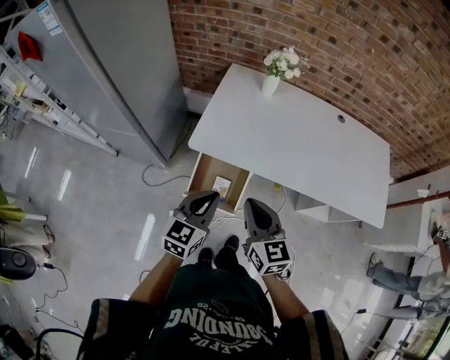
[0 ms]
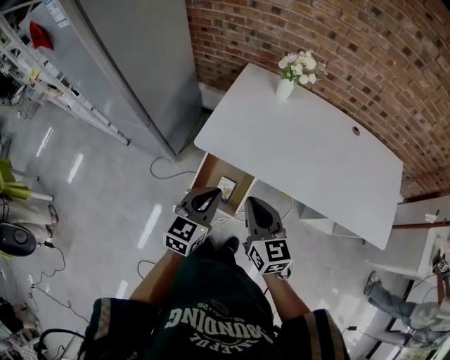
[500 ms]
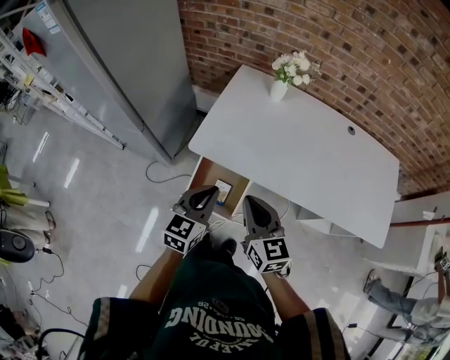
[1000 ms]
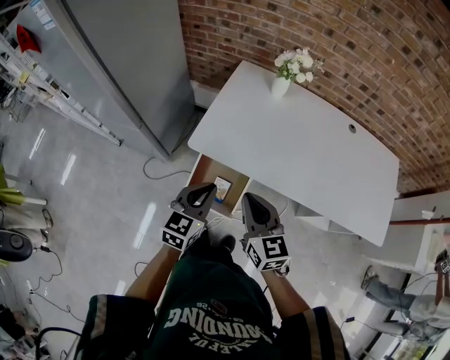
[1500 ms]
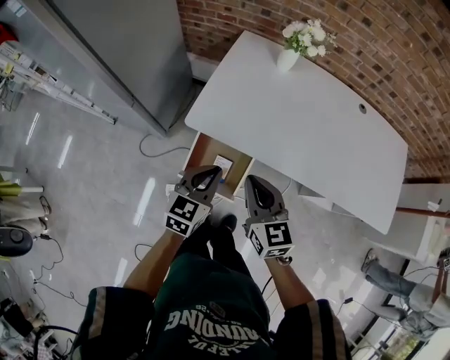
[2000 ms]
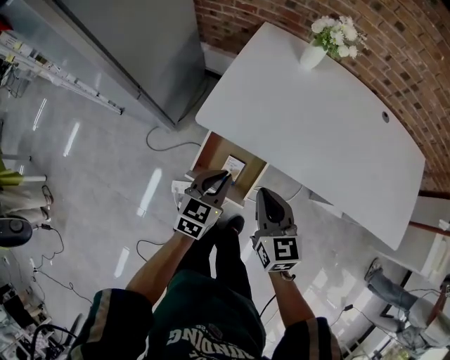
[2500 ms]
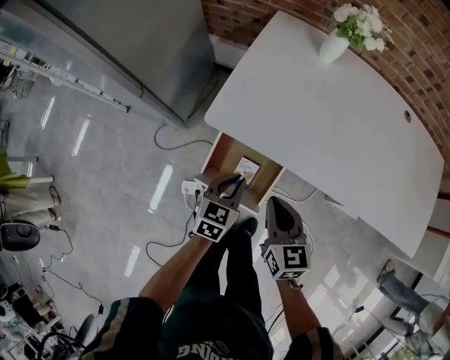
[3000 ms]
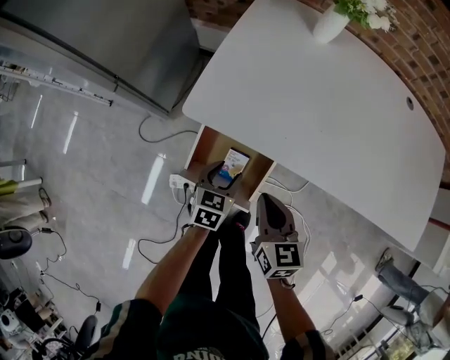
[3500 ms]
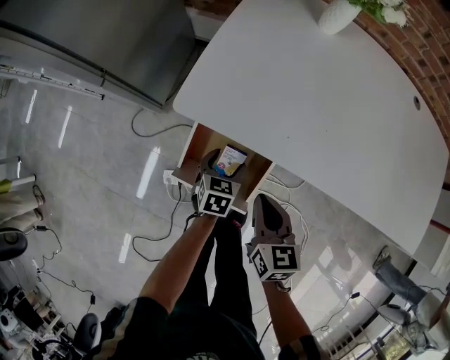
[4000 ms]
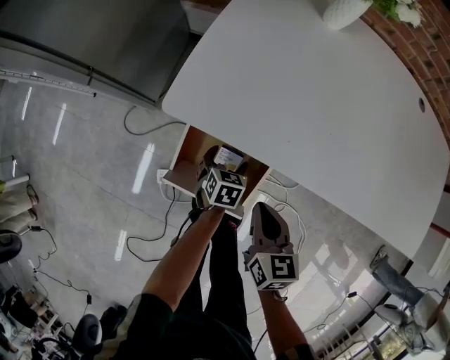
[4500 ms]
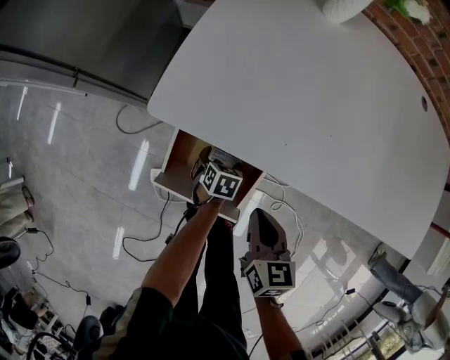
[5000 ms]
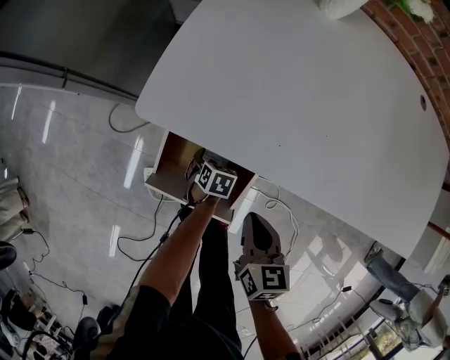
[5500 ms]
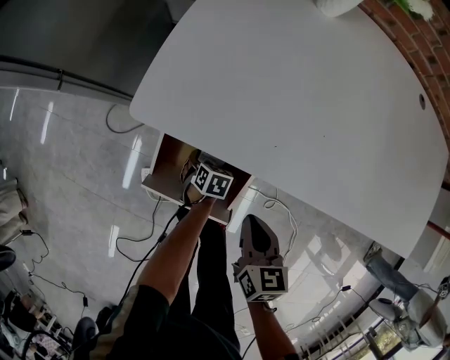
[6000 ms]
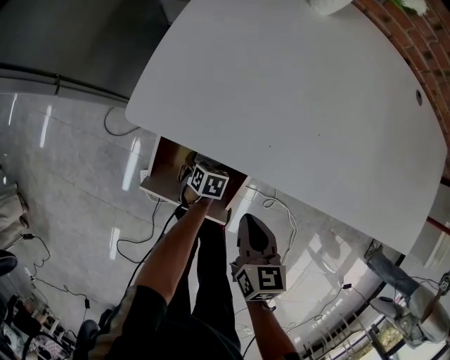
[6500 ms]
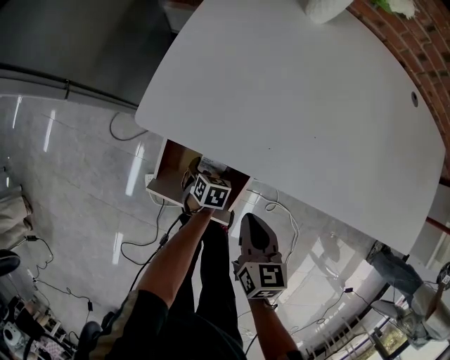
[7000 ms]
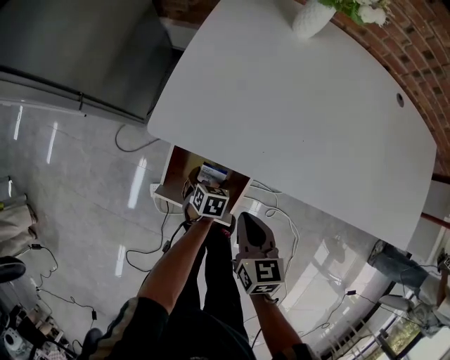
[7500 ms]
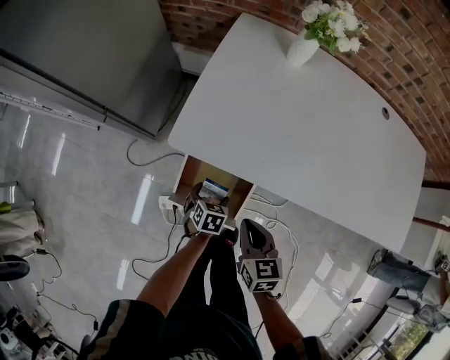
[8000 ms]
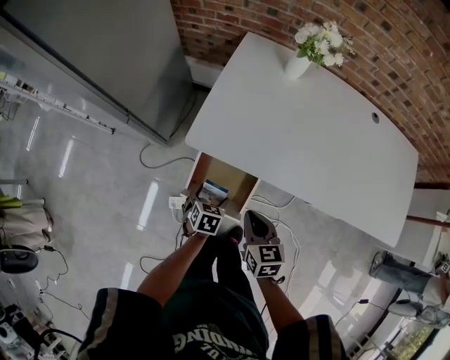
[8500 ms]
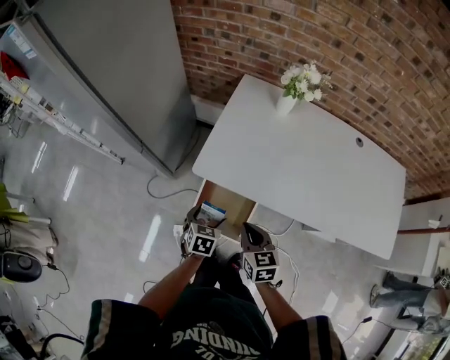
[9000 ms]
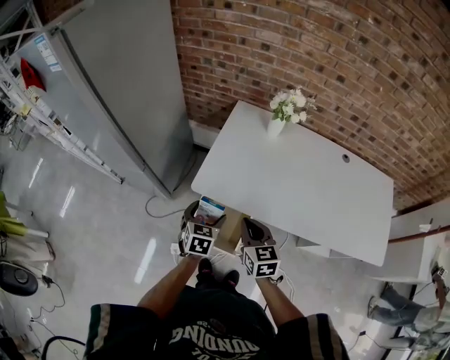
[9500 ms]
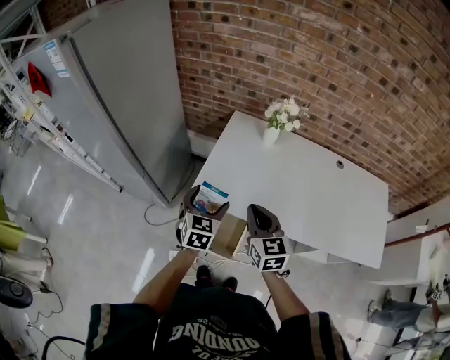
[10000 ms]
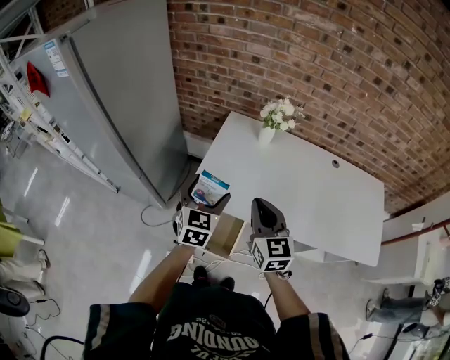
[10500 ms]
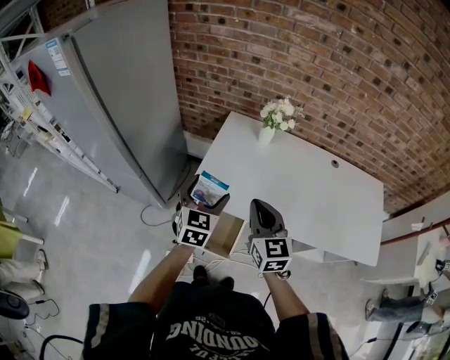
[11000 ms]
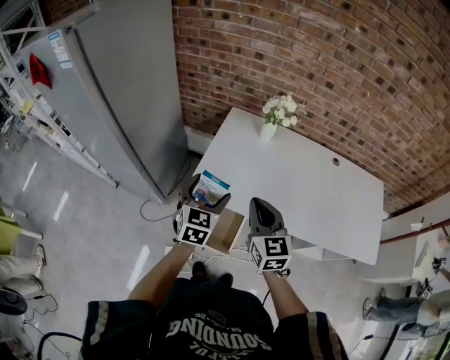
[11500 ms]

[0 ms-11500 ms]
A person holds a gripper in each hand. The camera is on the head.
0 ms to 2000 ms: The left gripper shifts about 10 cm downward and forward, while the right gripper heads forward and downward, covering roughly 10 cm.
2000 ms to 4000 ms: The two grippers go some 25 cm downward. The left gripper swivels some 30 degrees, and opens its fingers; the right gripper changes its angle by approximately 20 degrees.
4000 ms to 6000 ms: The right gripper goes some 5 cm downward, while the left gripper goes about 15 cm downward, and turns by approximately 20 degrees.
6000 ms to 7500 ms: The left gripper is displaced upward by approximately 10 cm.
7500 ms to 9500 ms: The left gripper goes approximately 35 cm upward, and changes its angle by about 30 degrees; the right gripper travels upward by approximately 20 cm.
9500 ms to 11500 ms: Both grippers travel together upward, about 15 cm.

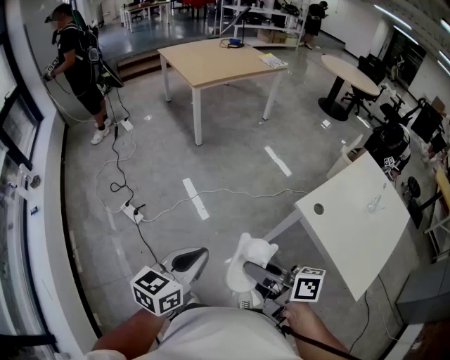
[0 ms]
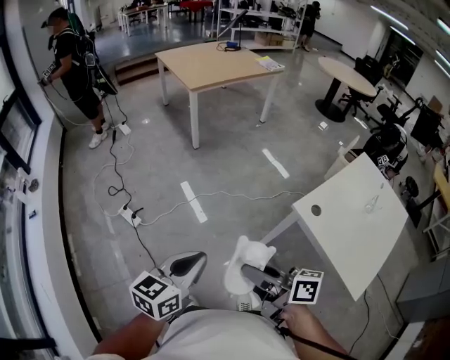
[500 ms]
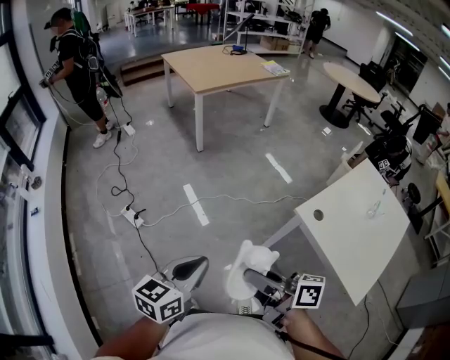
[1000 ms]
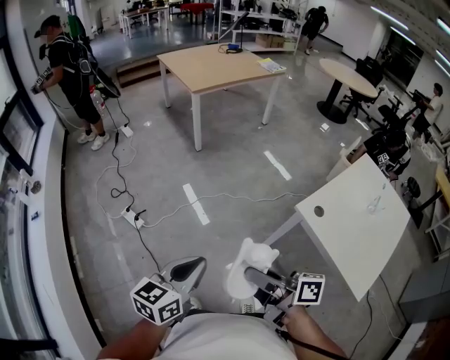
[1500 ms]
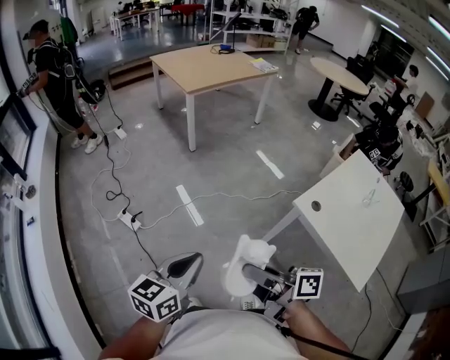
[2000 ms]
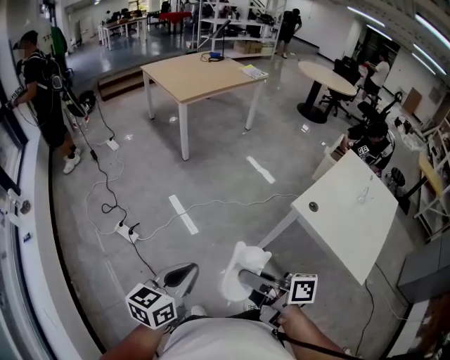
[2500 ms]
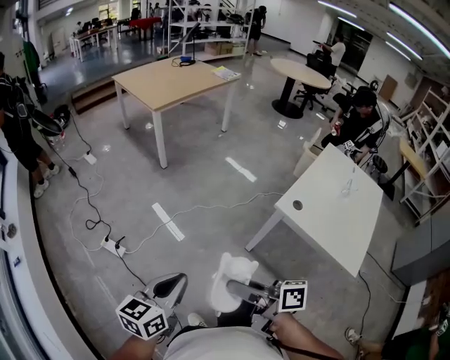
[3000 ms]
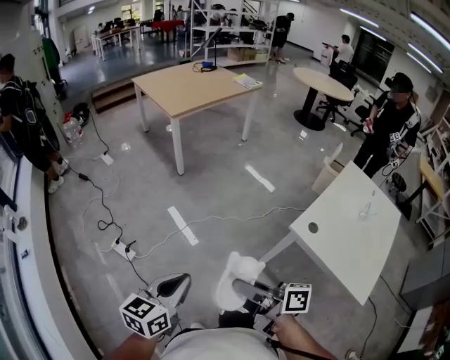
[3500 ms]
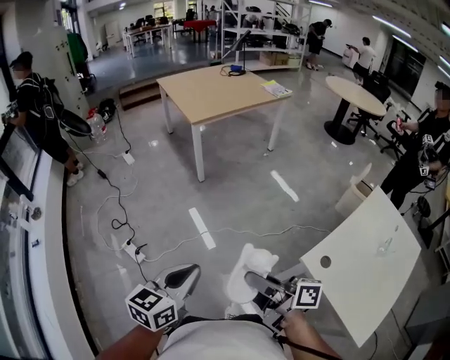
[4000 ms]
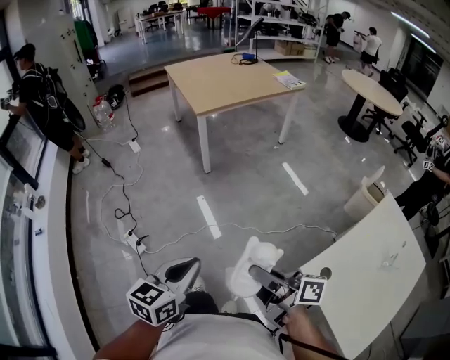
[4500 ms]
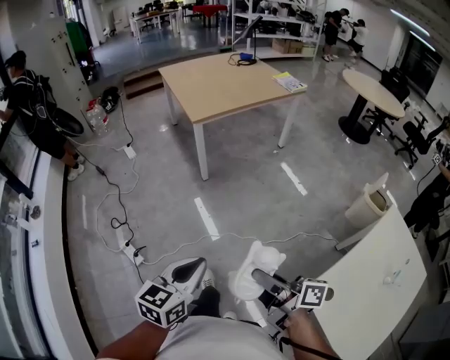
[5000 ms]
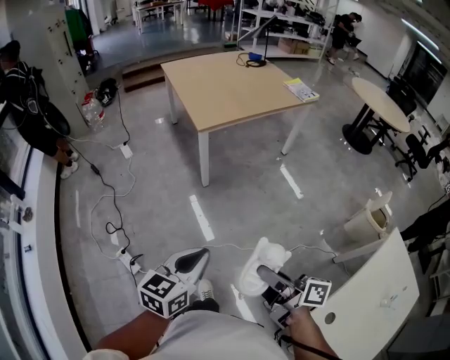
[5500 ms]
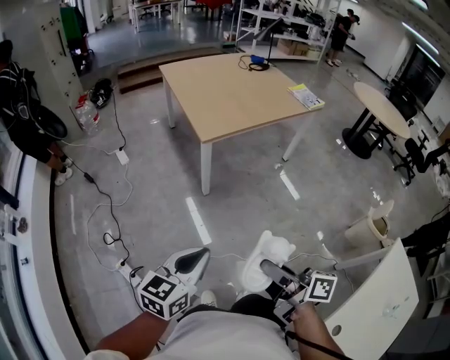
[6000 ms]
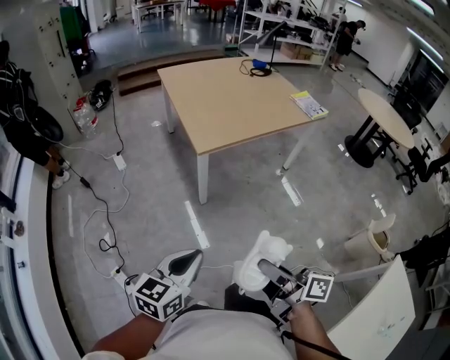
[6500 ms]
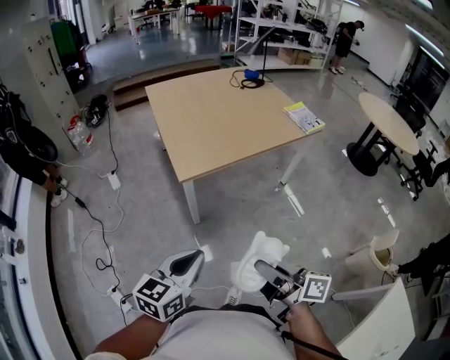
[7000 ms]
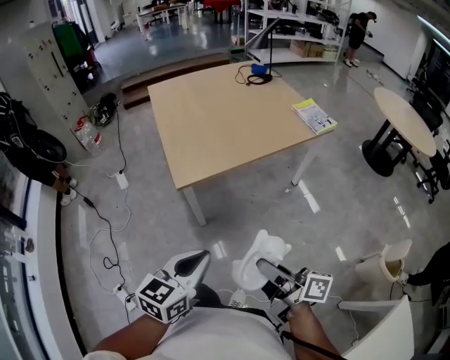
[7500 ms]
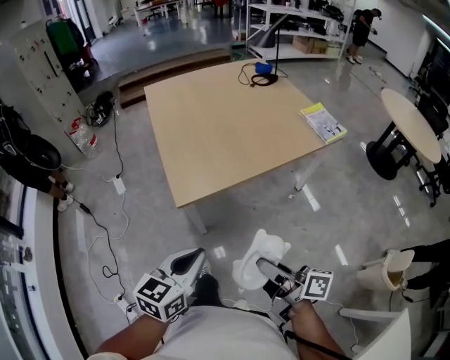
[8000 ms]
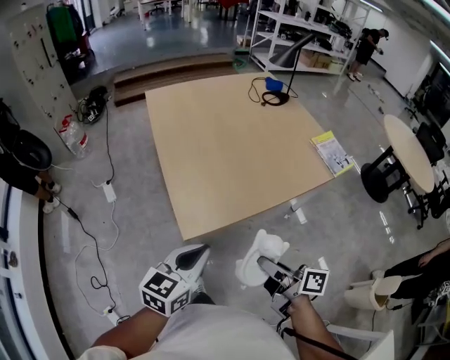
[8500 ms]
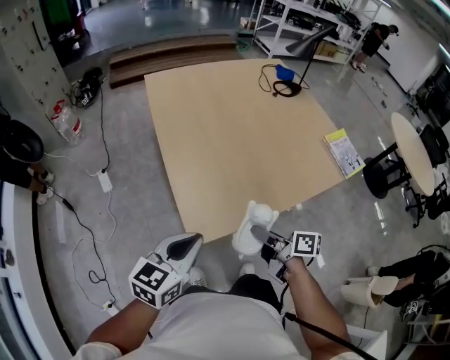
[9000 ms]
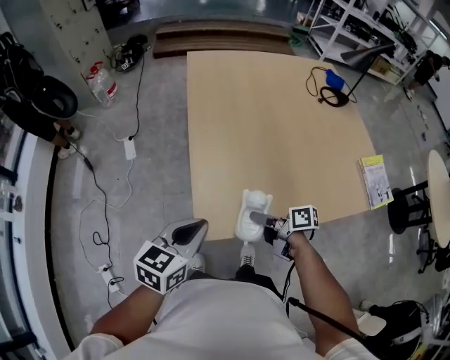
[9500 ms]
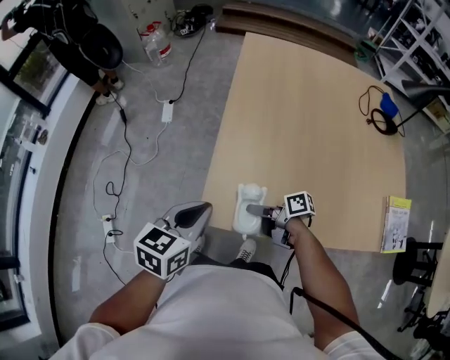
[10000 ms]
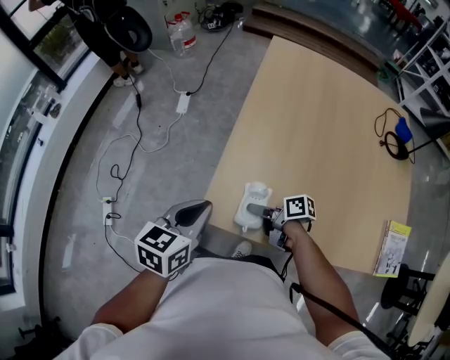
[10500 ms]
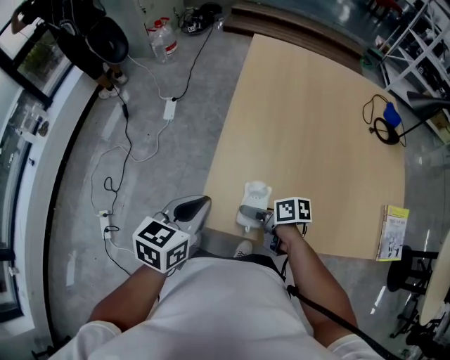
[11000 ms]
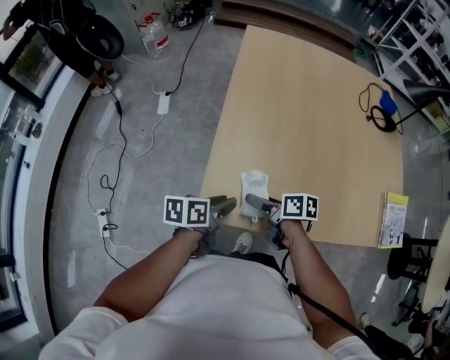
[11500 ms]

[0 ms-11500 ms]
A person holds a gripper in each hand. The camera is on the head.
0 ms to 2000 ms: The grippers move only a little.
2000 ms to 4000 ms: The two grippers go about 15 cm forward.
4000 ms to 6000 ms: The grippers both shift forward by about 35 cm.
6000 ms to 7500 ms: The grippers both shift forward and to the right by approximately 25 cm.
7500 ms to 9500 ms: Both grippers travel together forward, about 40 cm. The right gripper changes its angle by approximately 40 degrees.
9500 ms to 11500 ms: The right gripper moves approximately 5 cm, and opens up; the left gripper heads downward, covering about 15 cm, rotates around the line of its fingers by some 40 degrees, counterclockwise from behind, and opens.

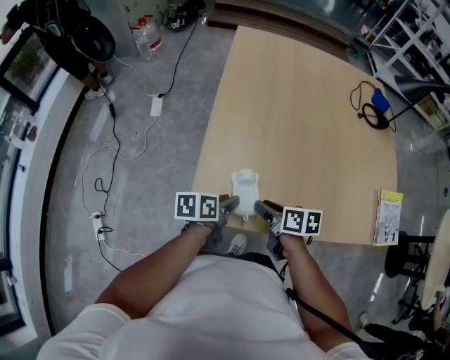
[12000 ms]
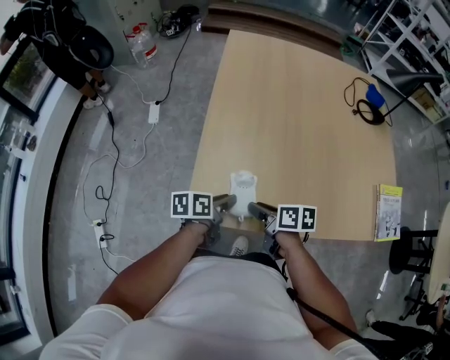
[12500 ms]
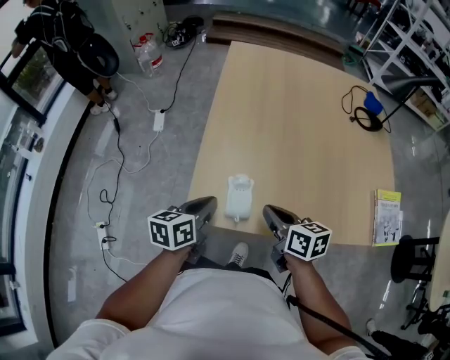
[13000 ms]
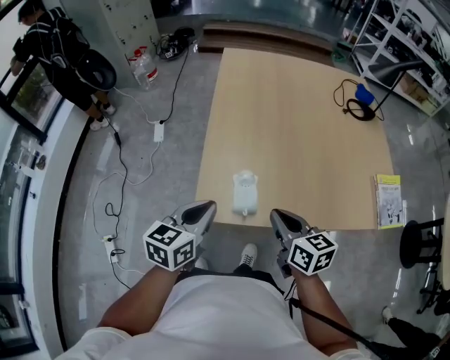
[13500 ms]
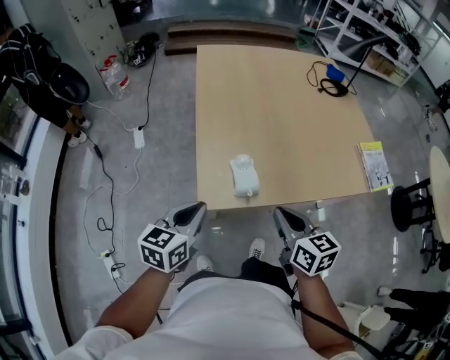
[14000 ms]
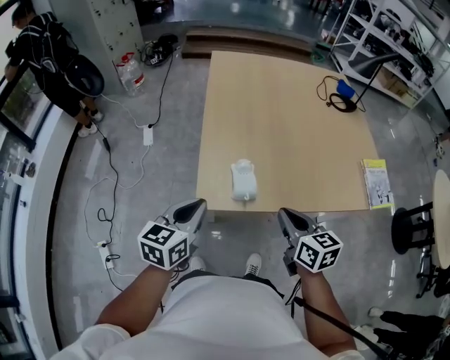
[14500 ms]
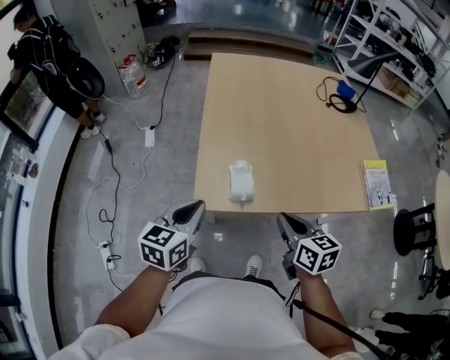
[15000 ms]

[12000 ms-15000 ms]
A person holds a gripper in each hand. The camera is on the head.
12000 ms to 13500 ms: The right gripper moves upward and backward, roughly 15 cm, changes its angle by roughly 30 degrees, and closes; the left gripper travels upward by about 15 cm, rotates about 40 degrees, and closes up.
13500 ms to 15000 ms: The right gripper shifts some 5 cm backward.

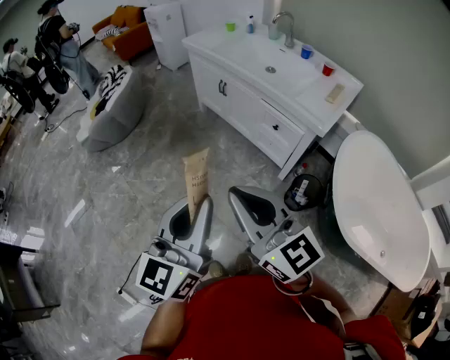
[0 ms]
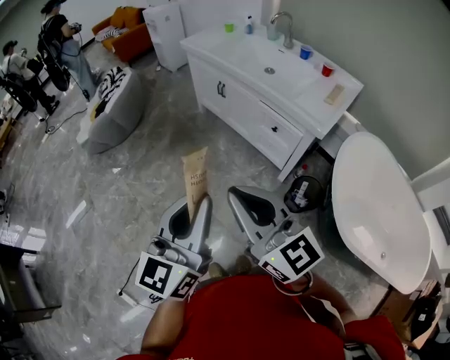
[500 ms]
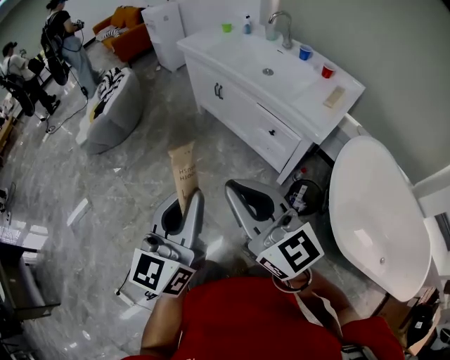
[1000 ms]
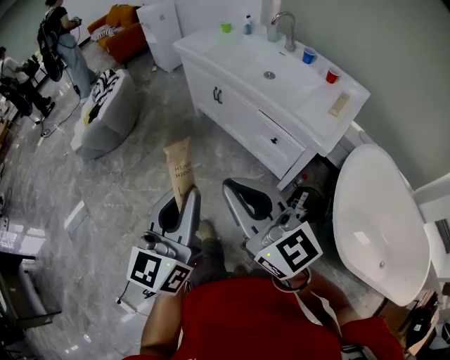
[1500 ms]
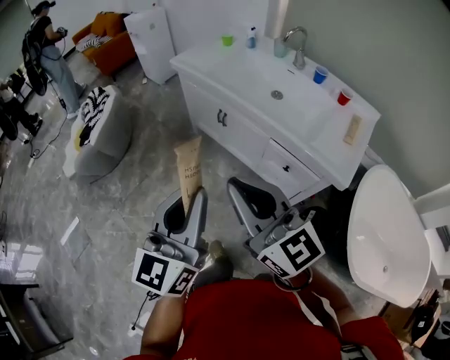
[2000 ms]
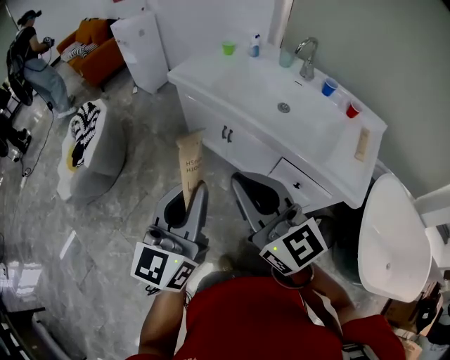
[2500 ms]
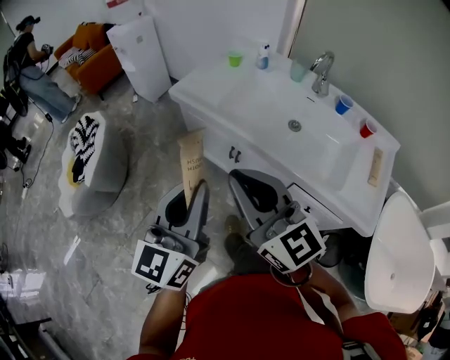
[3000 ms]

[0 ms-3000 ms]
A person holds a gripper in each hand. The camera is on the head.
0 ms to 1500 ms: Both grippers move forward, approximately 10 cm.
1500 ms to 3000 ms: Both grippers are carried forward, approximately 50 cm.
